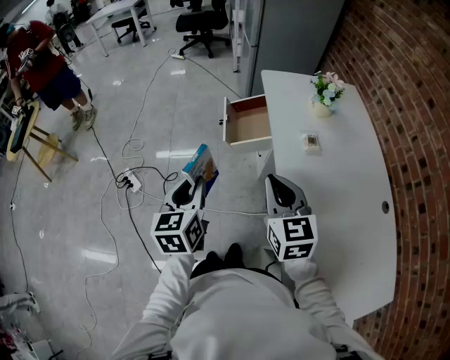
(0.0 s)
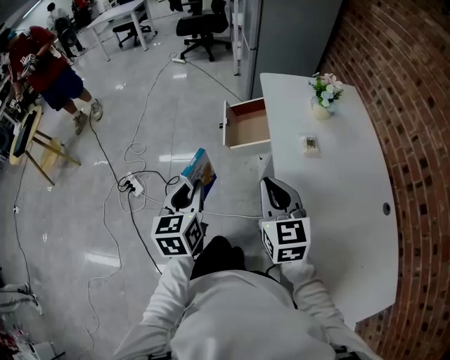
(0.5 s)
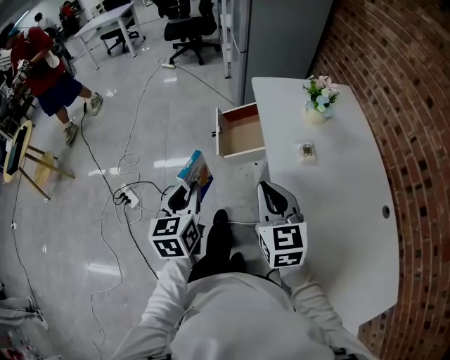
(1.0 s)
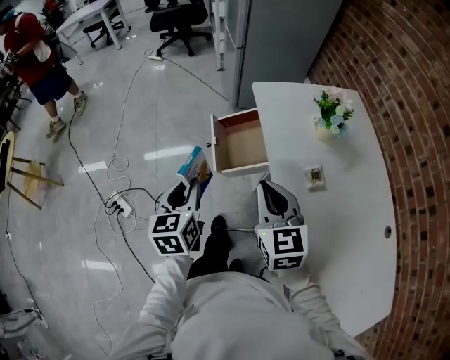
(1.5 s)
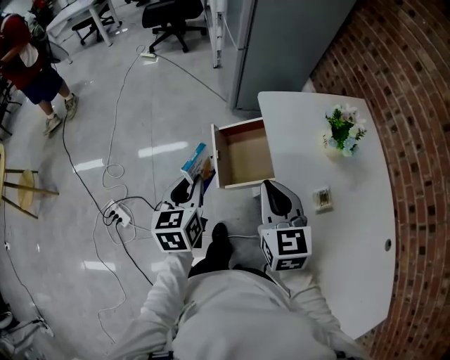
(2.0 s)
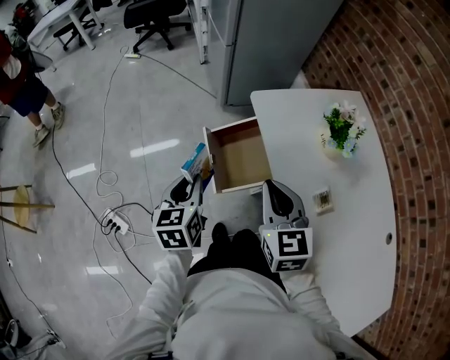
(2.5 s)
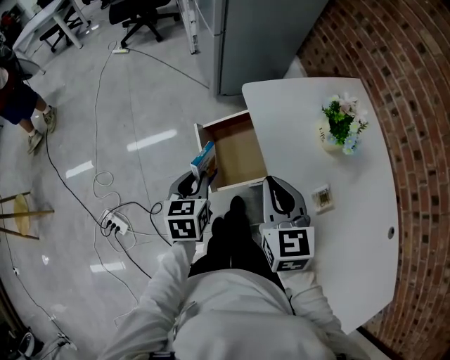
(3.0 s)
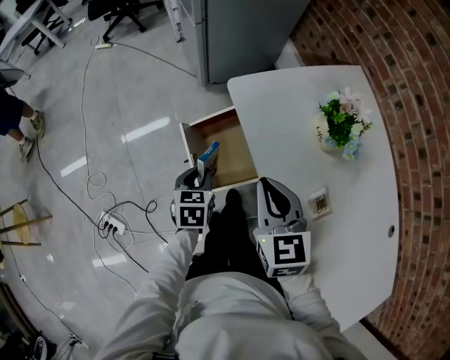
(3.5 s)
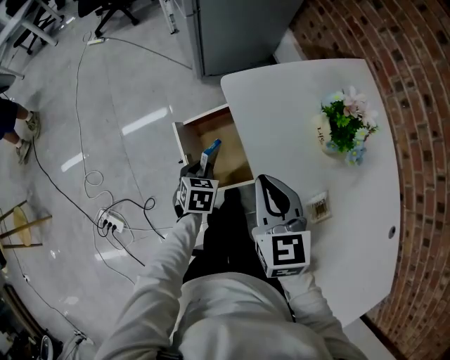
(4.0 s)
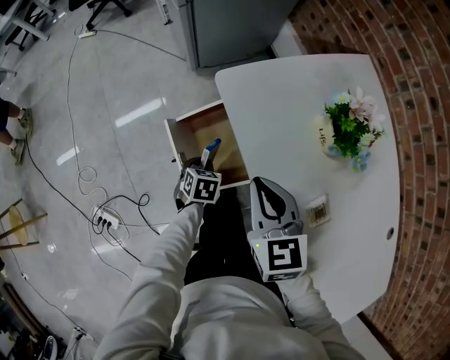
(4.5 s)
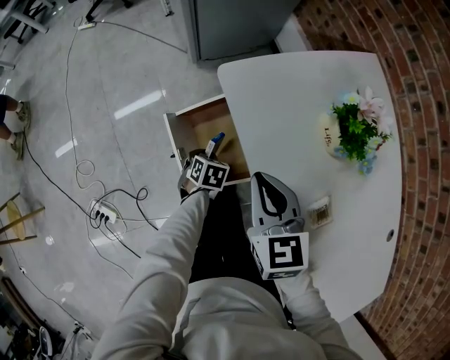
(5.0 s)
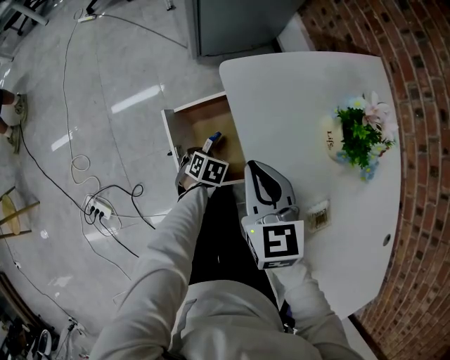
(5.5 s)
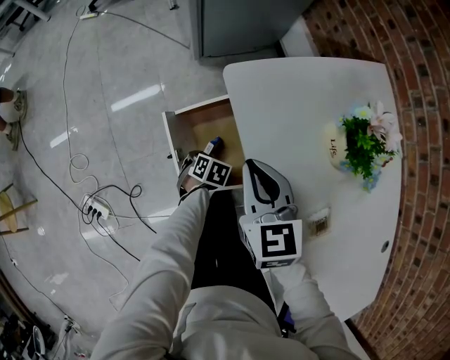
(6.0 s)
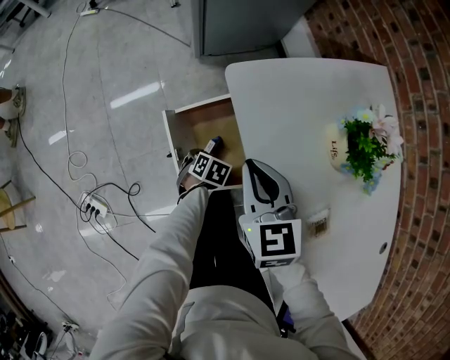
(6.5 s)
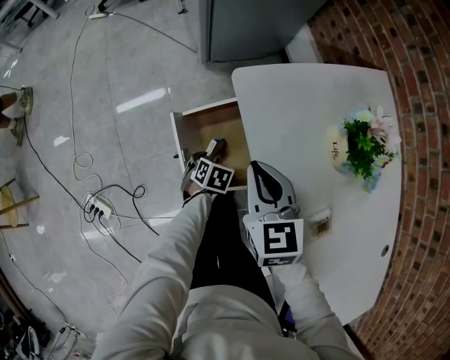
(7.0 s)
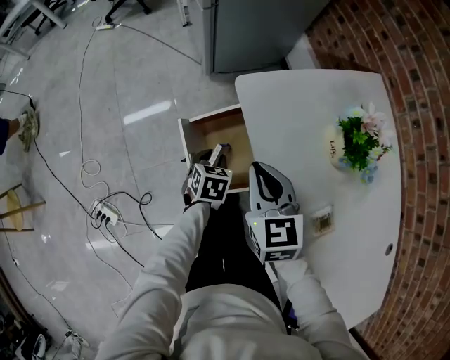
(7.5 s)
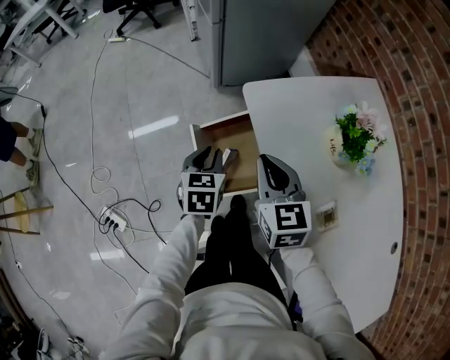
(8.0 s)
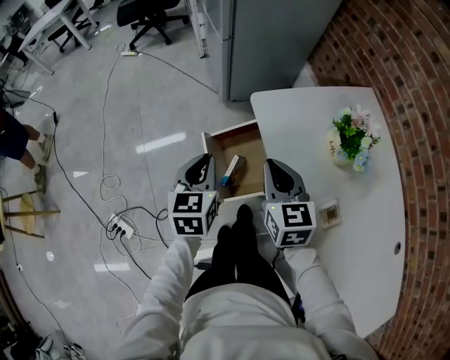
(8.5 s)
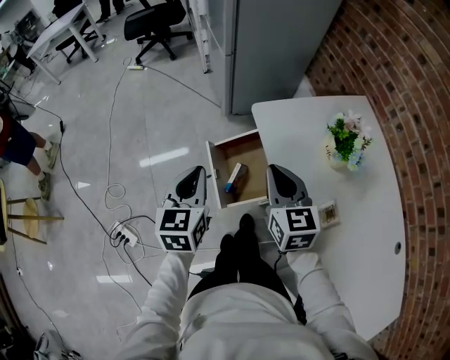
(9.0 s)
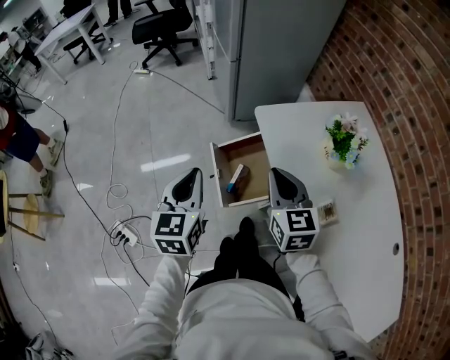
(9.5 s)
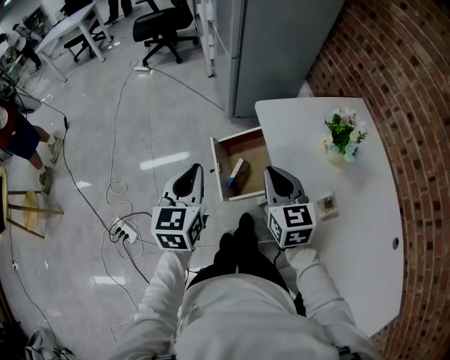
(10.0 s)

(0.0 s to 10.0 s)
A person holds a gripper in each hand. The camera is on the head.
0.0 s - 2.0 s: The two grippers go some 30 cm forward.
2.0 s - 4.0 s: The left gripper travels downward, forward and to the right by some 30 cm, and rotates approximately 40 degrees; the right gripper is displaced forward, downward and to the right by about 15 cm.
4.0 s - 6.0 s: The left gripper moves downward, some 15 cm, and swivels some 20 degrees, while the right gripper moves roughly 10 cm.
6.0 s - 8.0 s: The left gripper moves upward, some 25 cm, and points its fingers approximately 40 degrees further upward.
8.0 s - 10.0 s: The right gripper heads backward and upward, covering about 10 cm, while the left gripper heads upward, backward and to the left, covering approximately 25 cm, and rotates roughly 20 degrees.

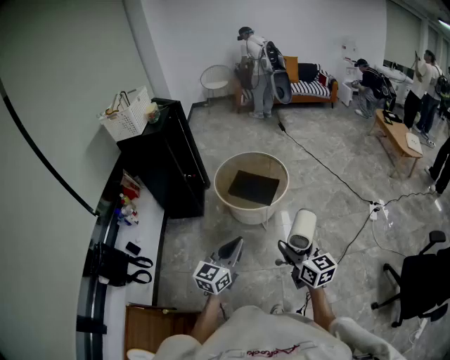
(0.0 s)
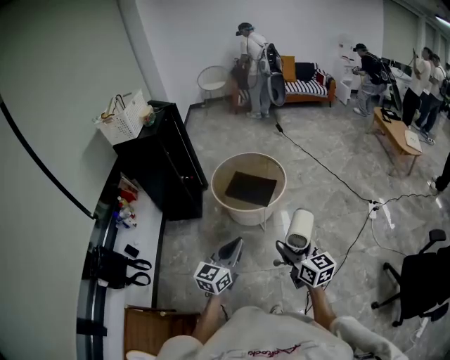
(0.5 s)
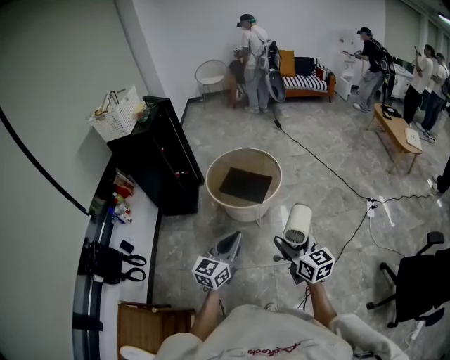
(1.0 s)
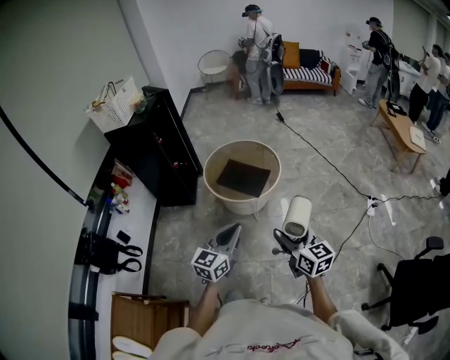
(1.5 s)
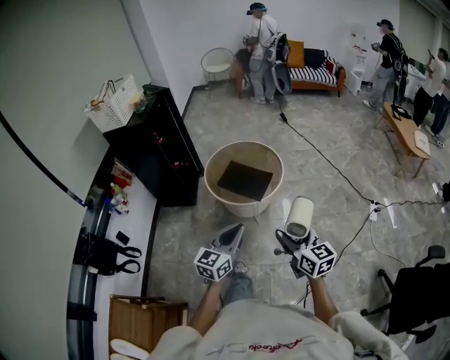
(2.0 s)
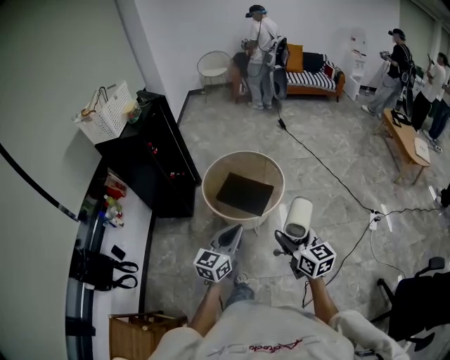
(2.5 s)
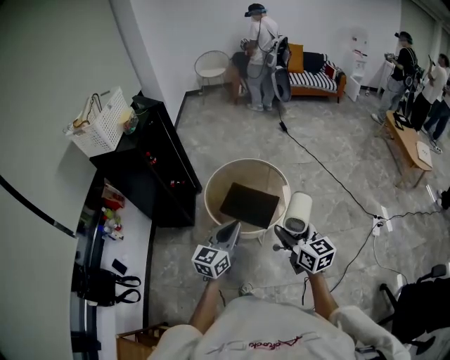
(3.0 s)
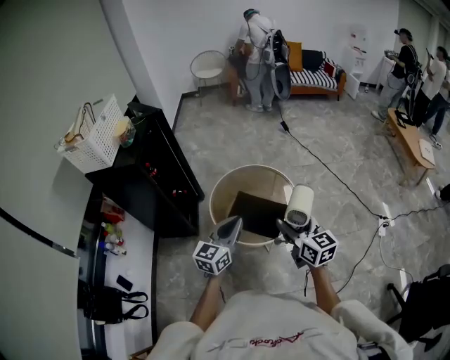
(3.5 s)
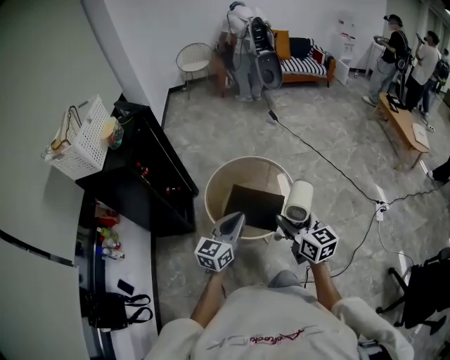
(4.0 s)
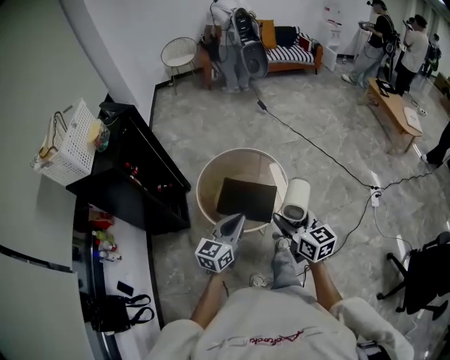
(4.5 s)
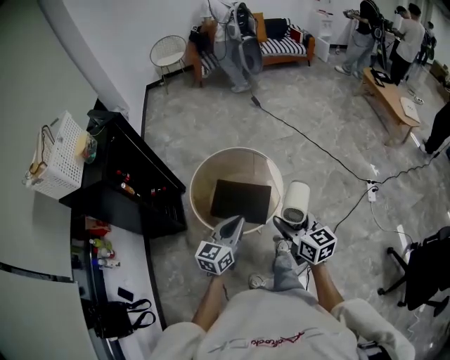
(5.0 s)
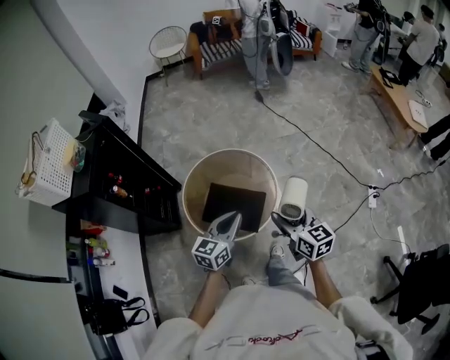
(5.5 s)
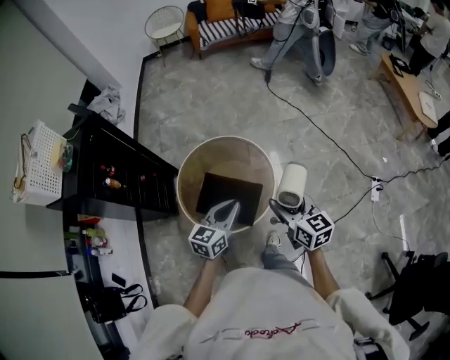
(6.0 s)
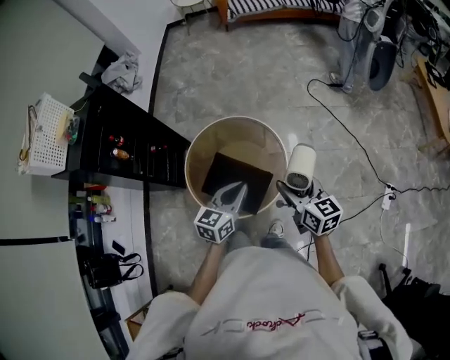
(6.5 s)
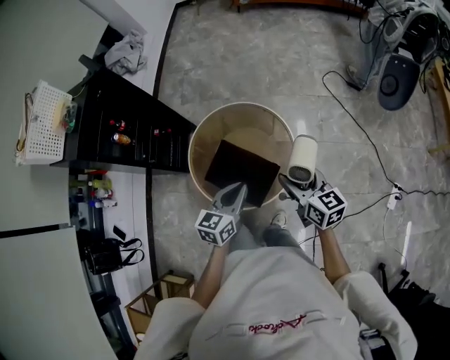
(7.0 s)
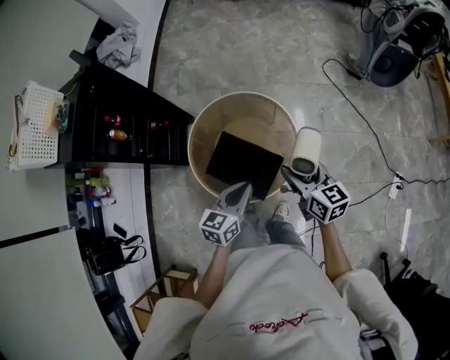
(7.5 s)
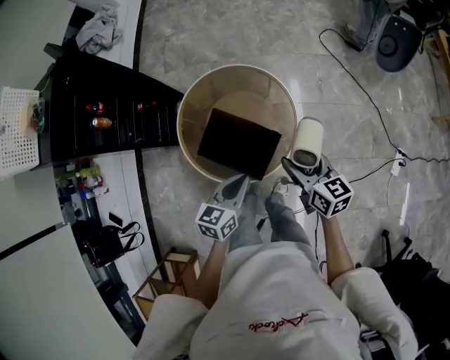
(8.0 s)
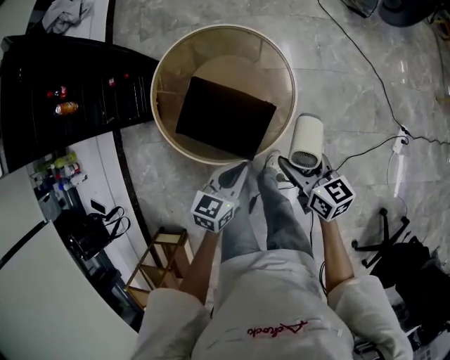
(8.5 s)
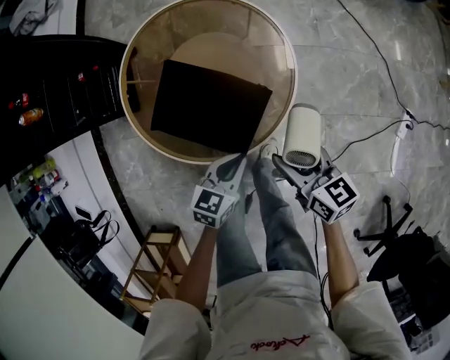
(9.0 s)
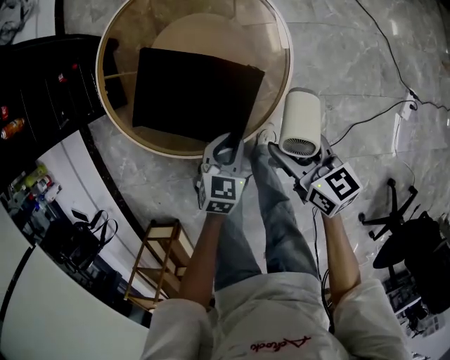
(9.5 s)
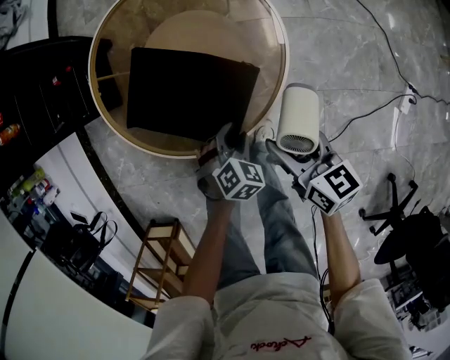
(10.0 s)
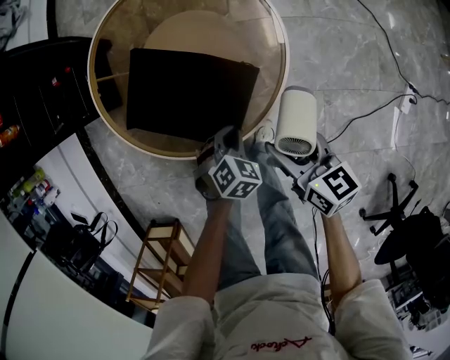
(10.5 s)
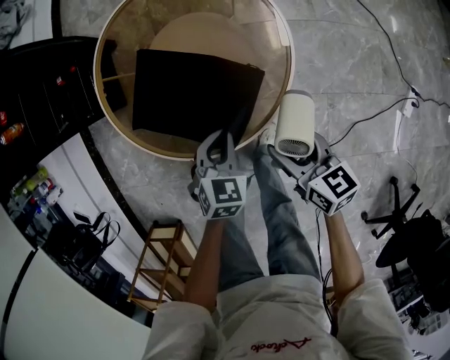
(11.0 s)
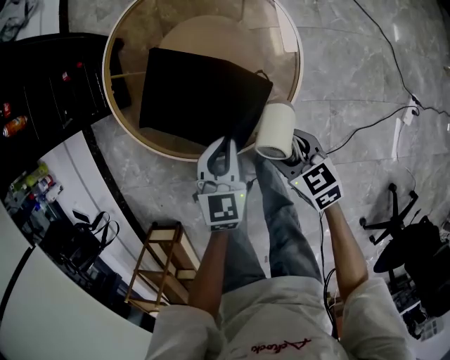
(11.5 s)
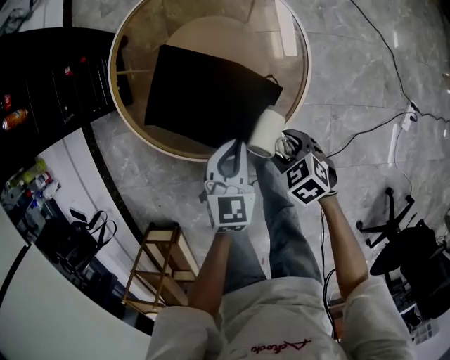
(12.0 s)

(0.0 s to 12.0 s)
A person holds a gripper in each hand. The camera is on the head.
0.0 s - 2.0 s: The right gripper shifts about 15 cm forward and to the right, while the left gripper goes approximately 15 cm to the right and forward.
2.0 s - 4.0 s: The left gripper is displaced forward by roughly 35 cm. The right gripper shifts about 35 cm forward and to the left.
4.0 s - 6.0 s: The right gripper is displaced forward and to the right by about 20 cm; the left gripper is displaced forward, to the right and downward by approximately 25 cm.
6.0 s - 8.0 s: The left gripper is displaced downward by roughly 10 cm. Meanwhile the right gripper travels downward and forward by about 15 cm.
8.0 s - 10.0 s: Both grippers travel together downward, approximately 30 cm. The left gripper tilts its fingers approximately 40 degrees downward, and opens its fingers.
10.0 s - 12.0 s: The left gripper shifts roughly 10 cm upward, turns by about 40 degrees, and closes up; the right gripper is displaced downward and to the left by some 10 cm, and angles its fingers downward, by approximately 40 degrees.

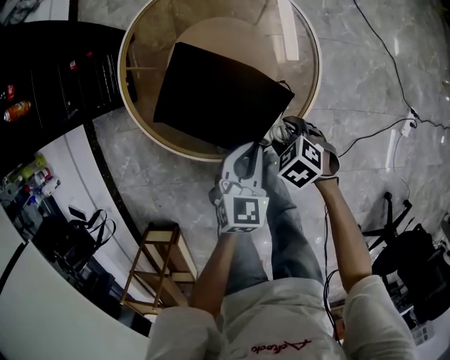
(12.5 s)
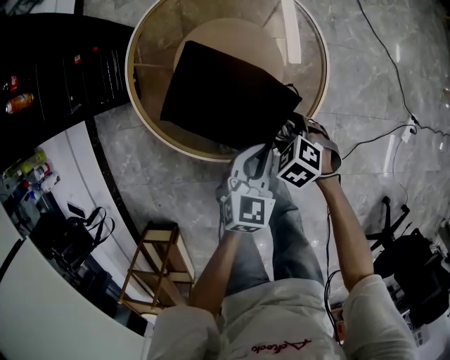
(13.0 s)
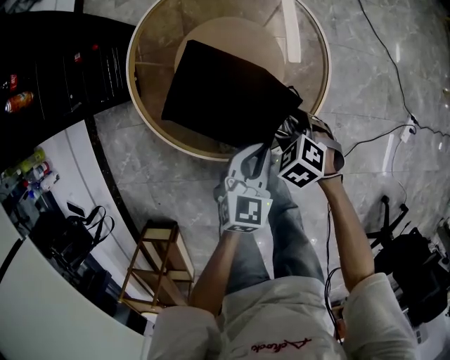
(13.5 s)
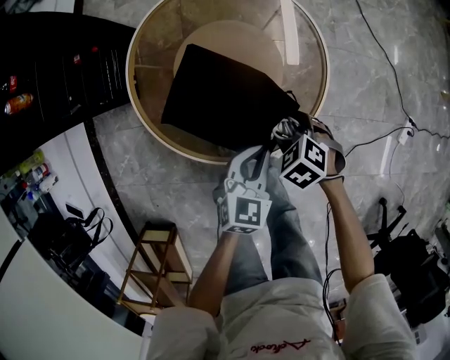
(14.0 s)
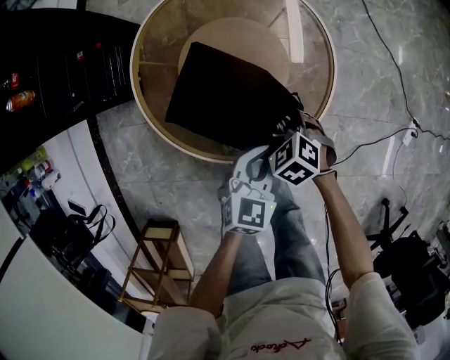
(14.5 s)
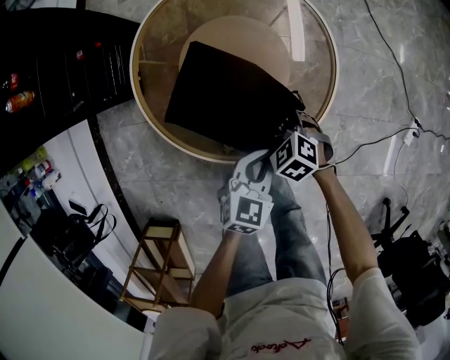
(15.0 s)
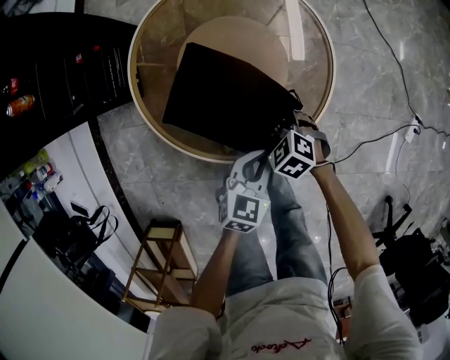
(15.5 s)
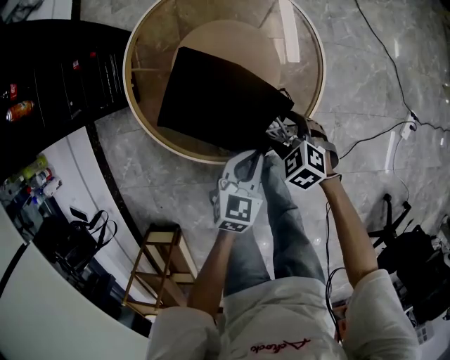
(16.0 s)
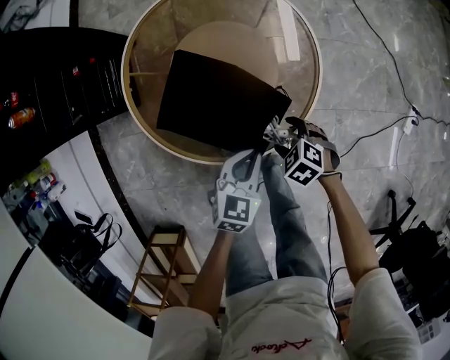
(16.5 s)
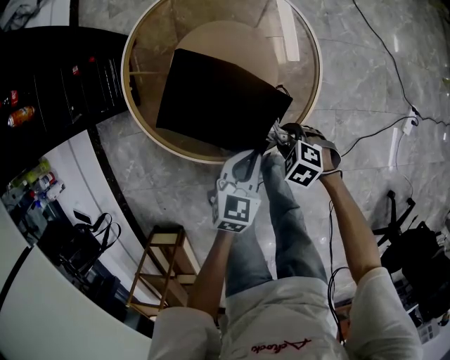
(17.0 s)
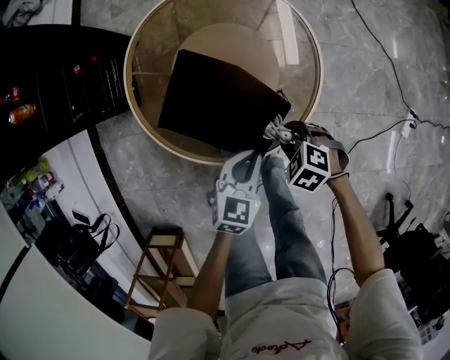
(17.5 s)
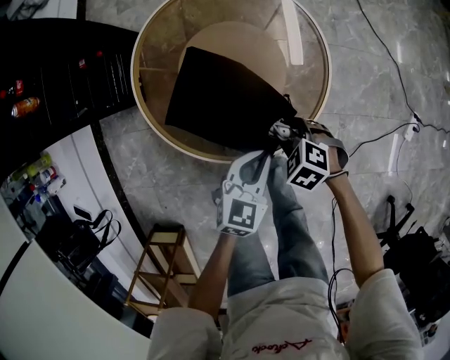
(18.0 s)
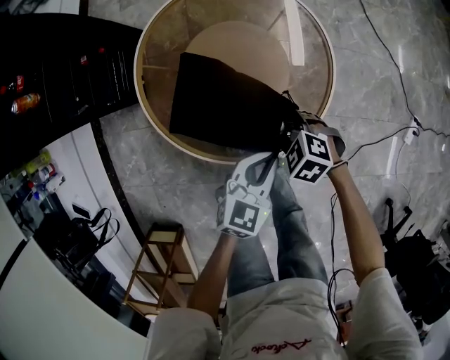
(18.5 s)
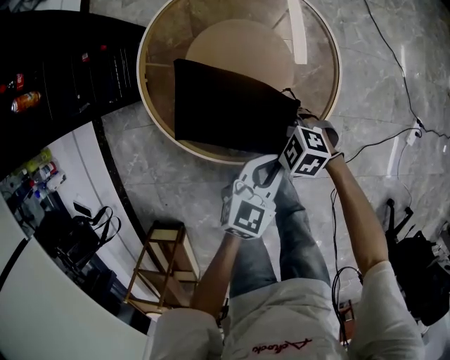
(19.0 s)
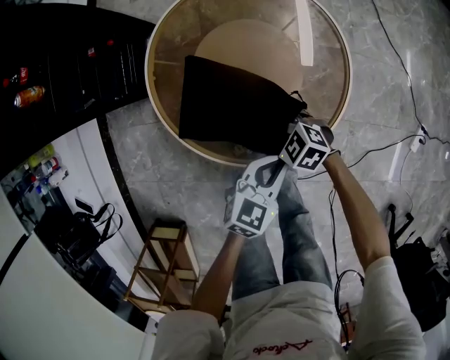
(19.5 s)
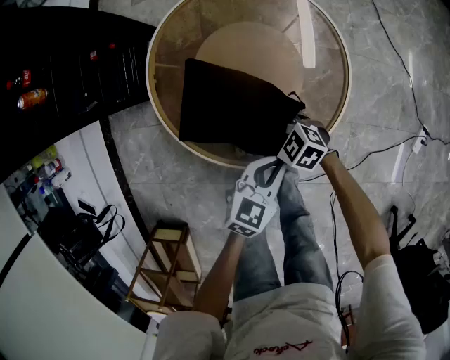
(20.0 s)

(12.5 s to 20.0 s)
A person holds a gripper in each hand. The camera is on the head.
12.5 s - 14.5 s: The right gripper moves some 10 cm.
14.5 s - 16.5 s: The right gripper goes about 10 cm backward and to the right.
16.5 s - 18.0 s: The right gripper changes place by approximately 5 cm, and closes its fingers.
18.0 s - 20.0 s: The right gripper shifts by about 10 cm, and changes its angle by roughly 30 degrees.
